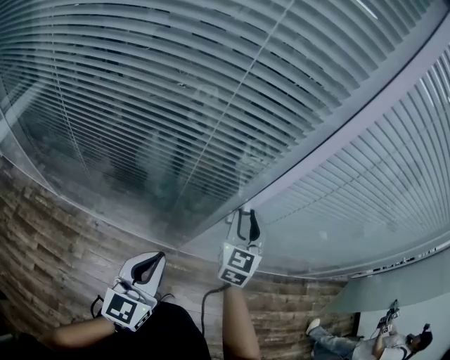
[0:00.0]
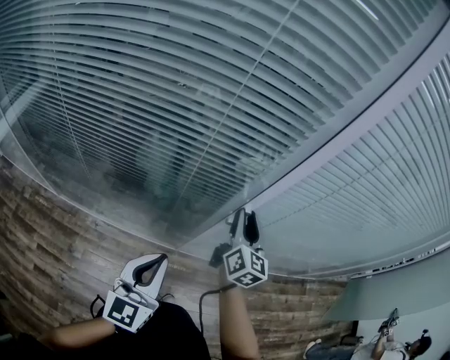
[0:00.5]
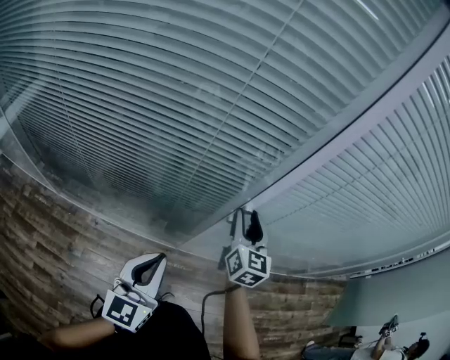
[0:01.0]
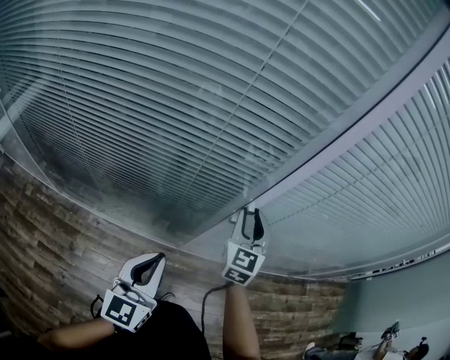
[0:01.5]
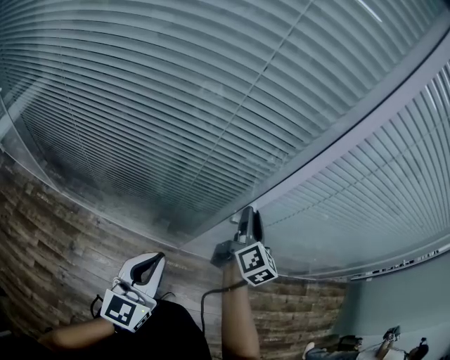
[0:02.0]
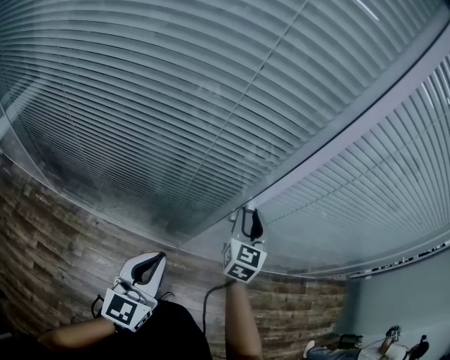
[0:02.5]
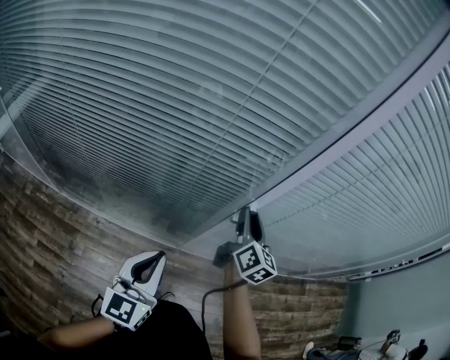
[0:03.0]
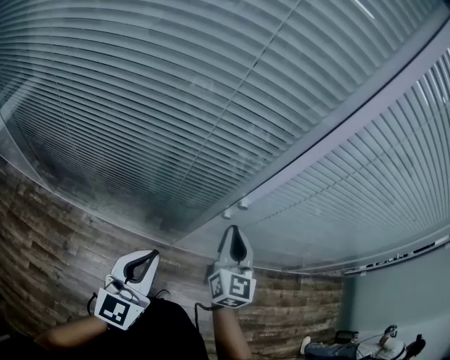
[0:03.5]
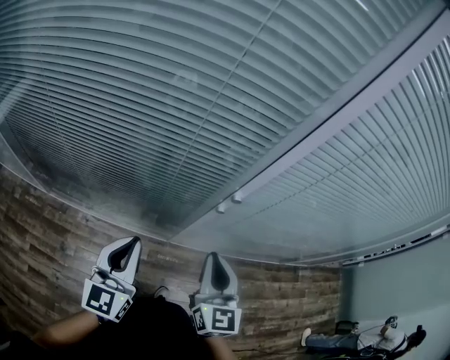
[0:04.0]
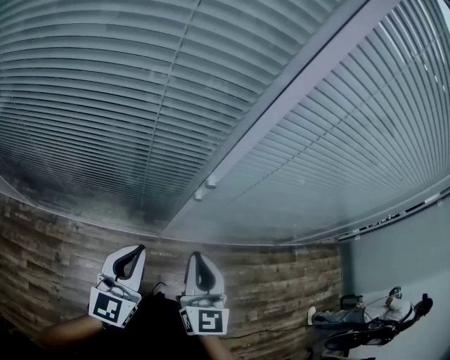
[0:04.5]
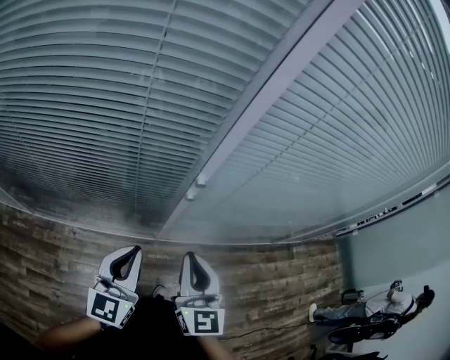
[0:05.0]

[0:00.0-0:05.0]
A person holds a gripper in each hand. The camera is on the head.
0:02.5 to 0:05.0: The right gripper travels backward by roughly 20 cm, and closes up.

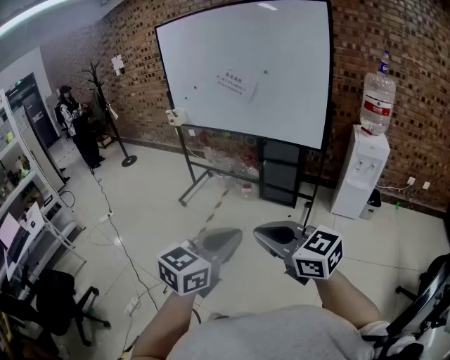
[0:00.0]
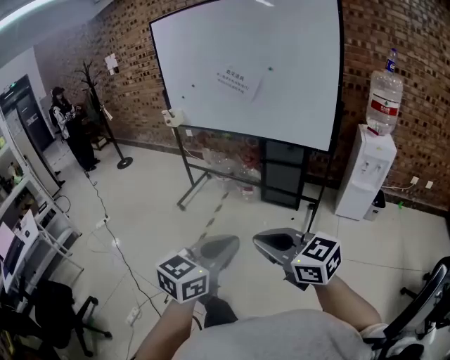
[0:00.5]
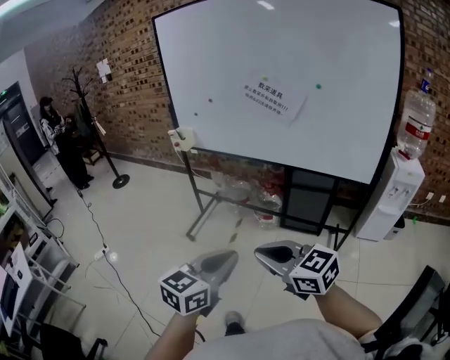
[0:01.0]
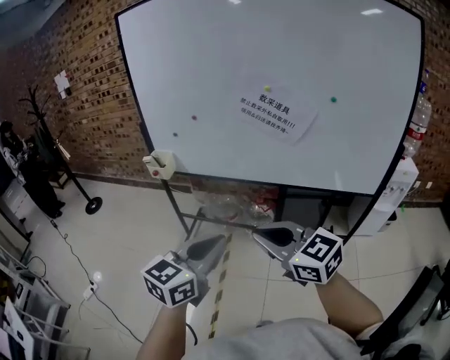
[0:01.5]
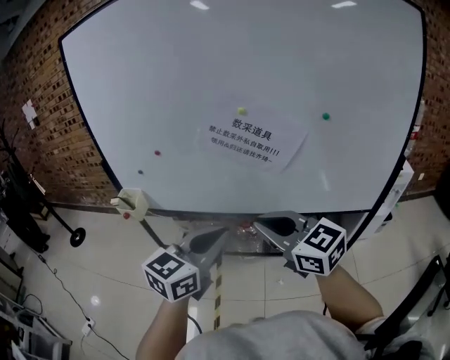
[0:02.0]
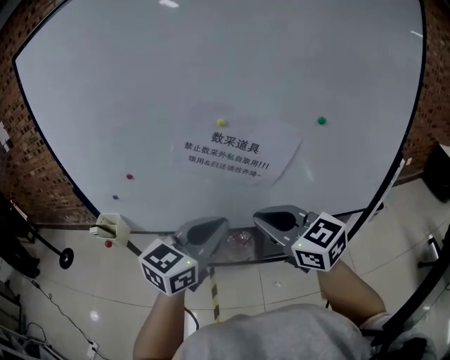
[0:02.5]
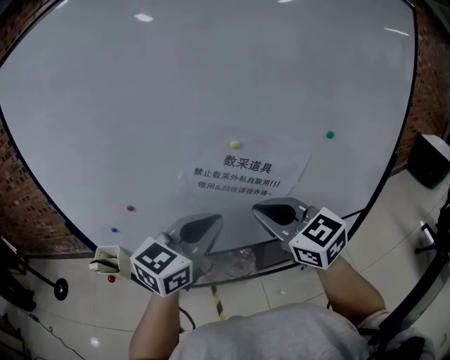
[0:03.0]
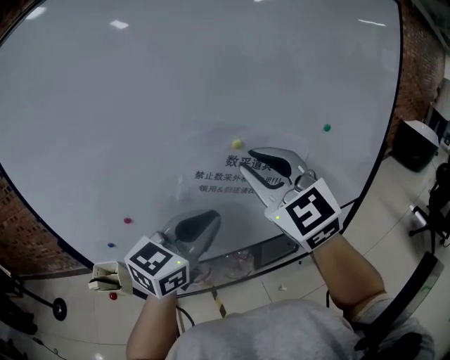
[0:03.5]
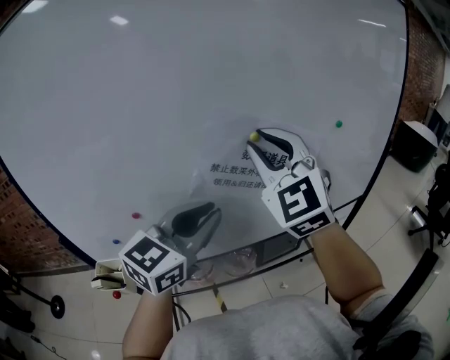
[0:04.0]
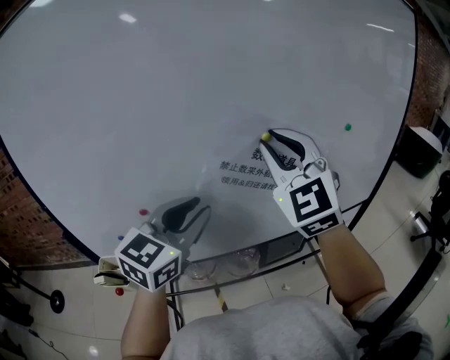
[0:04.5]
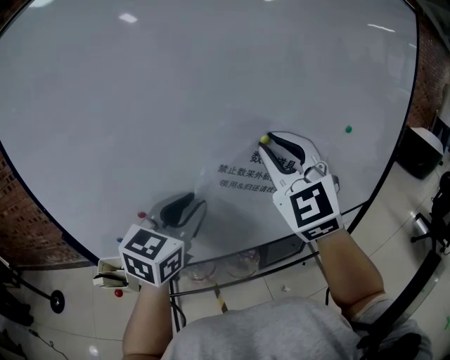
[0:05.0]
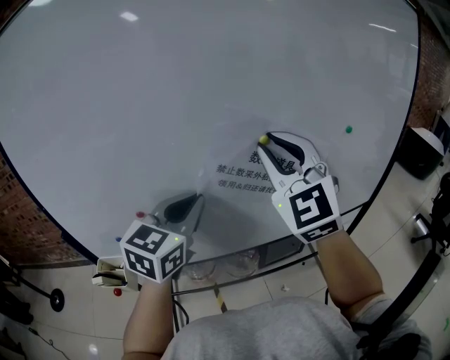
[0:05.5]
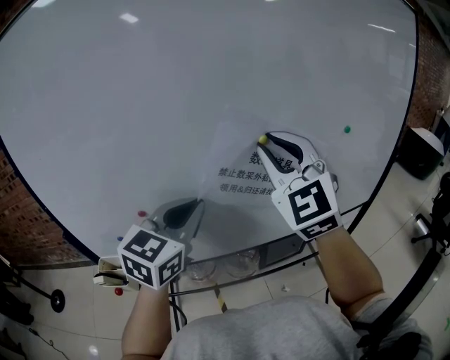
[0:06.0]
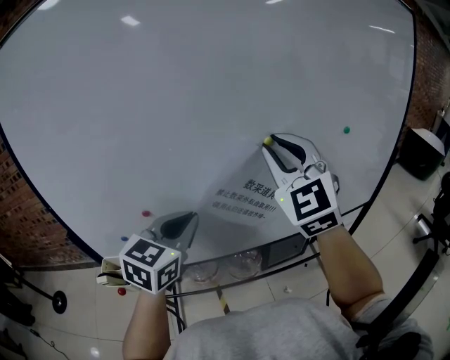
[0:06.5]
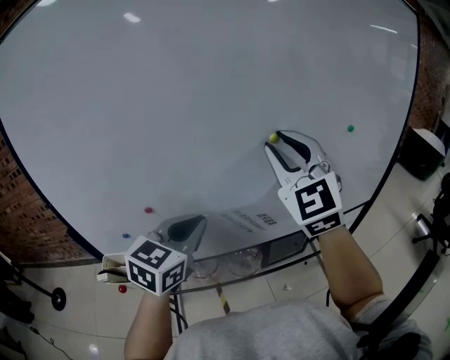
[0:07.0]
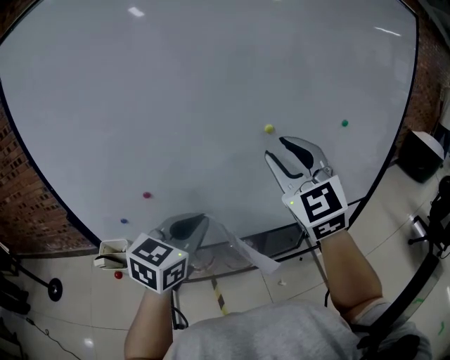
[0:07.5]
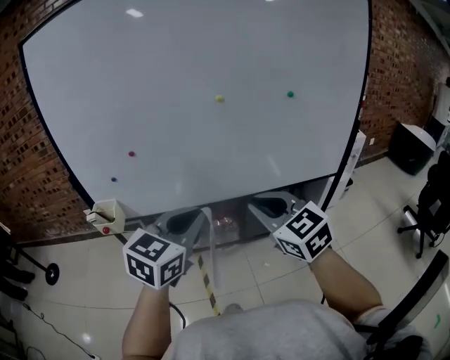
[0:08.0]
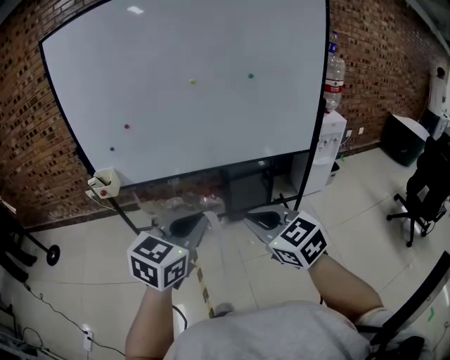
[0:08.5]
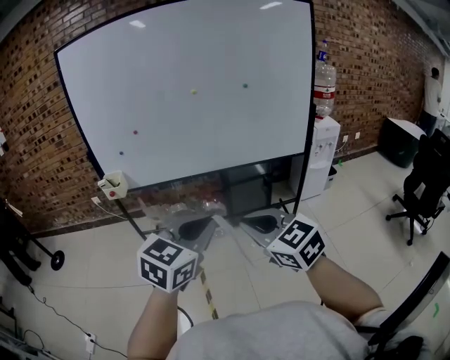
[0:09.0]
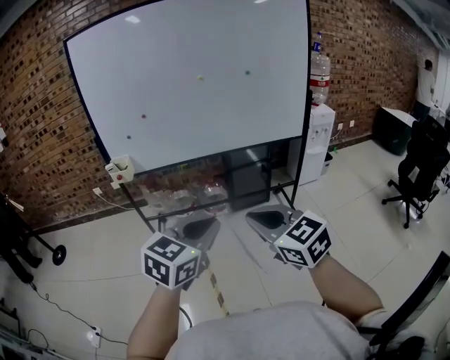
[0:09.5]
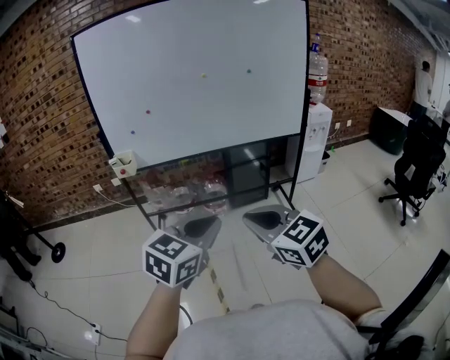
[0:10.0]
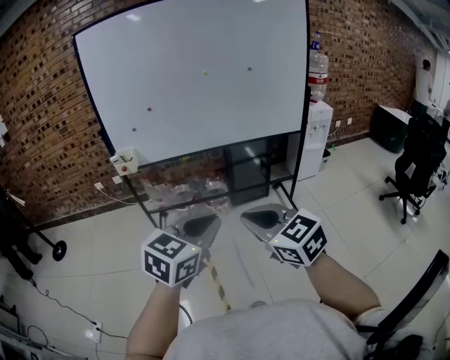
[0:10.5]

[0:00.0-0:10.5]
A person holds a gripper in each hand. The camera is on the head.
0:00.0 to 0:02.0: Both grippers are carried forward, some 70 cm. The right gripper changes its angle by some 30 degrees.
0:02.0 to 0:04.0: The left gripper moves roughly 20 cm, and rotates about 20 degrees. Meanwhile the right gripper ends up roughly 30 cm from where it was, and rotates approximately 60 degrees.
0:04.0 to 0:06.5: The left gripper goes roughly 5 cm to the left.
0:06.5 to 0:08.5: The two grippers travel together, backward and to the right, roughly 40 cm. The right gripper is displaced downward by roughly 20 cm, and swivels roughly 50 degrees.
0:08.5 to 0:10.5: The left gripper is displaced backward by approximately 20 cm. Meanwhile the right gripper moves backward and to the left, roughly 20 cm.

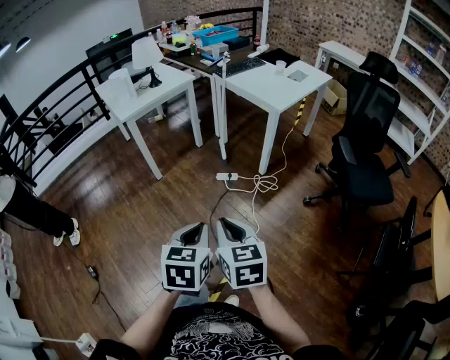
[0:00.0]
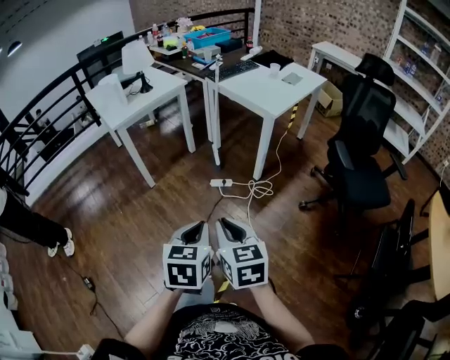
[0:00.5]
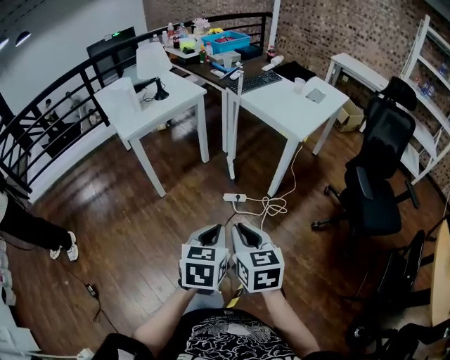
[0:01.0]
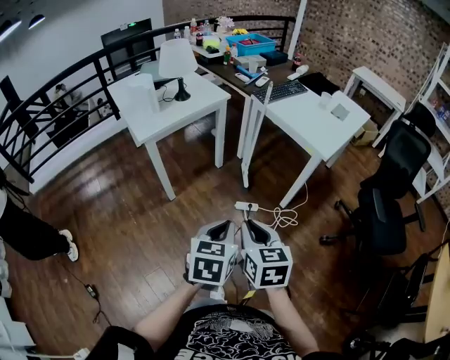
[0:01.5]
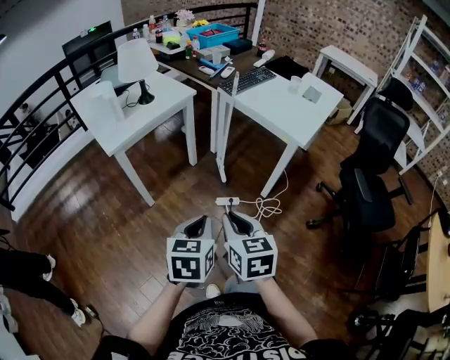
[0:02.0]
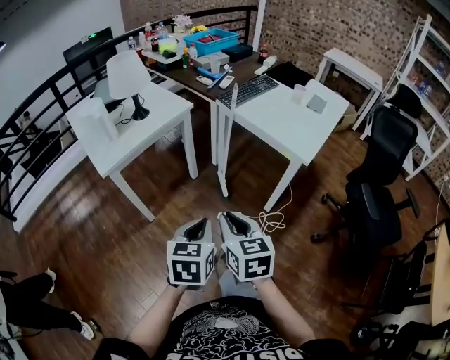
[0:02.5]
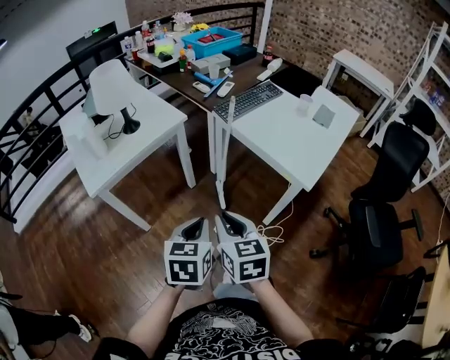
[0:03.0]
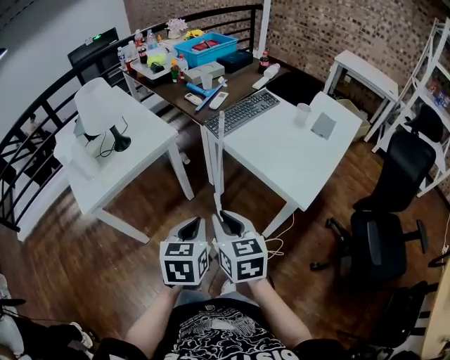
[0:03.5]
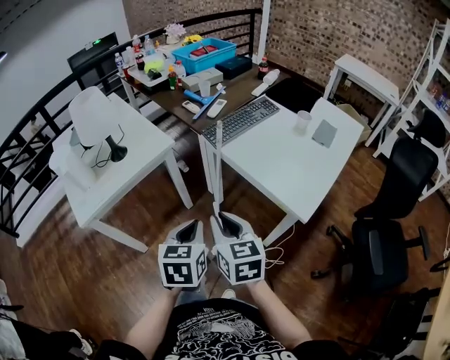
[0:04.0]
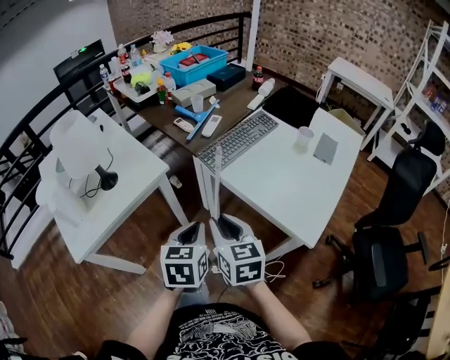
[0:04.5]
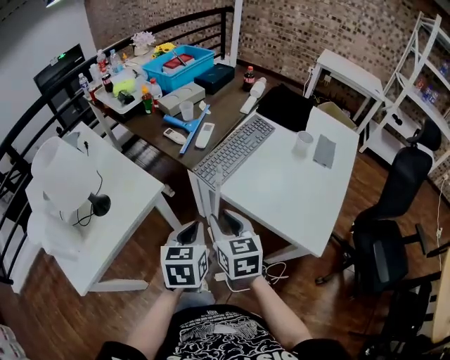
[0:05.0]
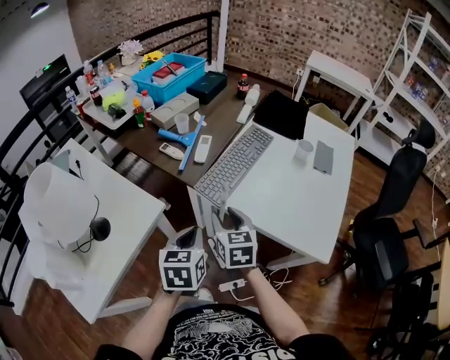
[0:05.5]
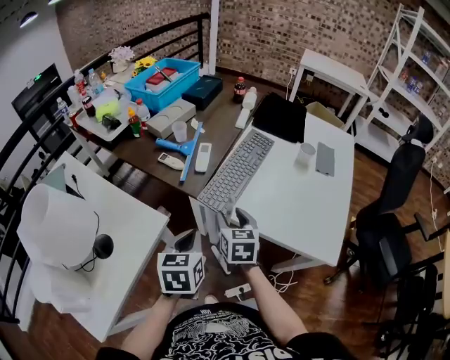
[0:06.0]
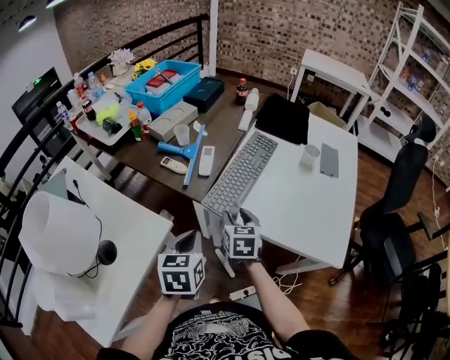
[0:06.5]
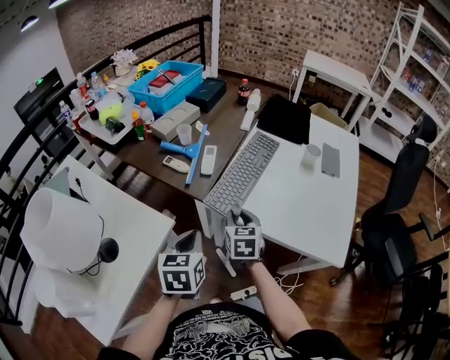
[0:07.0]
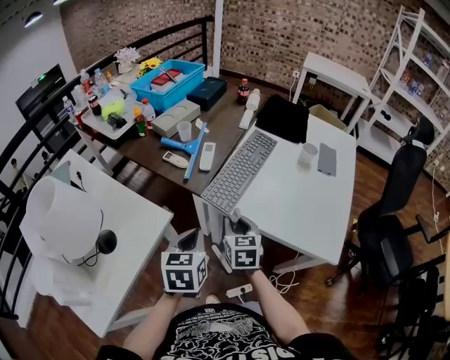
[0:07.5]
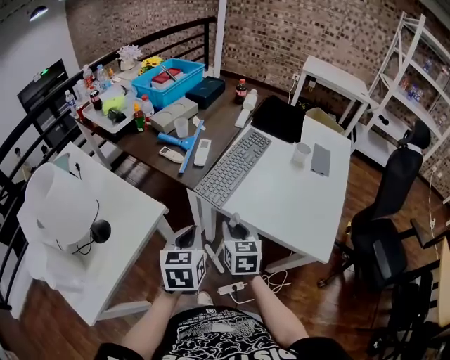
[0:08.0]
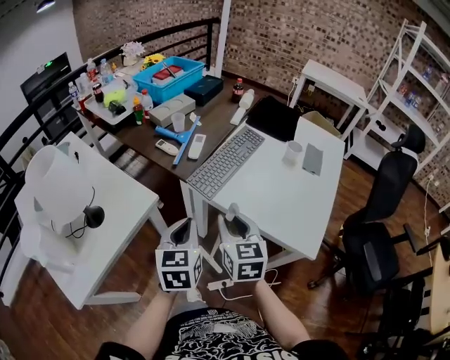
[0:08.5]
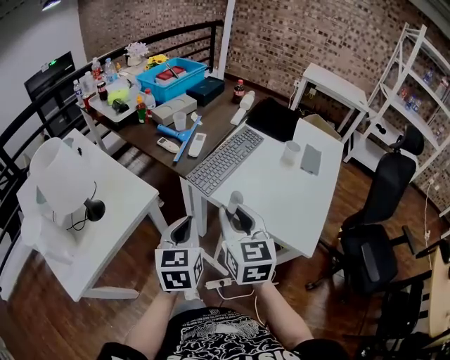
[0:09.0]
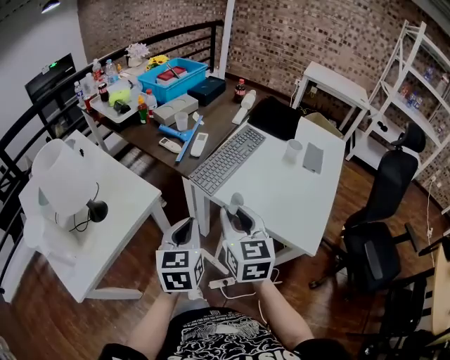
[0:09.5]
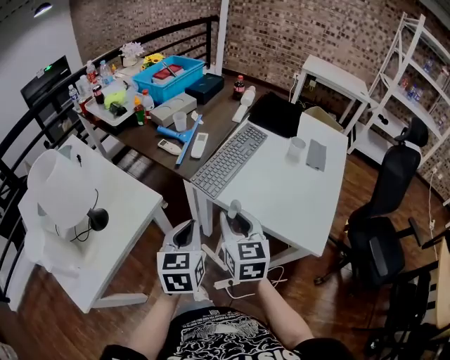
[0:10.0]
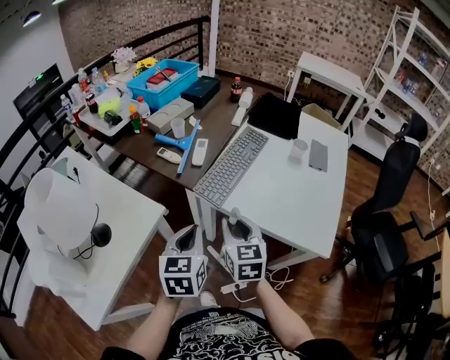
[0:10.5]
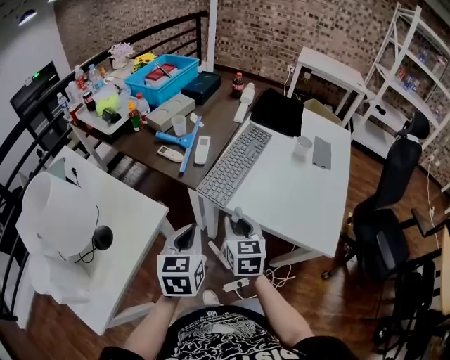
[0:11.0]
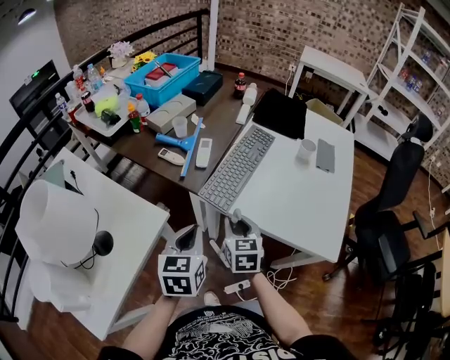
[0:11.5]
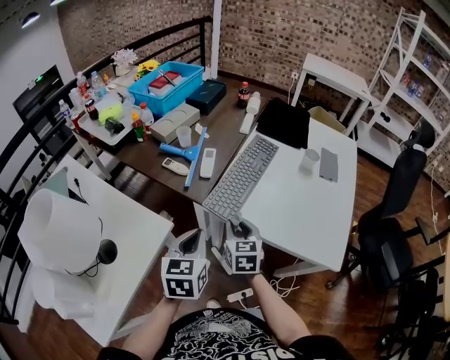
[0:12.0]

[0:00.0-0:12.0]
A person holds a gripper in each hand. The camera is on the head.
0:00.0 to 0:02.0: The grippers both shift forward by approximately 30 cm.
0:02.0 to 0:04.0: The two grippers go roughly 35 cm forward.
0:04.0 to 0:06.0: The two grippers go about 35 cm forward. The right gripper changes its angle by approximately 30 degrees, and opens up.
0:06.0 to 0:08.0: The right gripper travels backward by some 5 cm.
0:08.0 to 0:10.0: The right gripper moves upward, approximately 10 cm.
0:10.0 to 0:12.0: The right gripper shifts approximately 15 cm downward and forward. The left gripper shifts roughly 10 cm forward.
